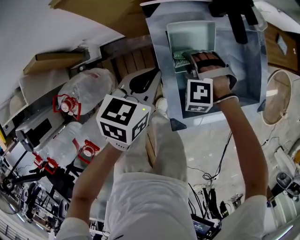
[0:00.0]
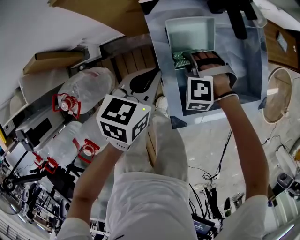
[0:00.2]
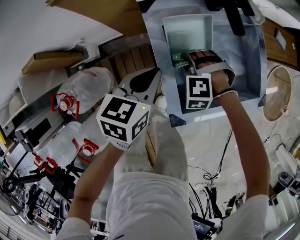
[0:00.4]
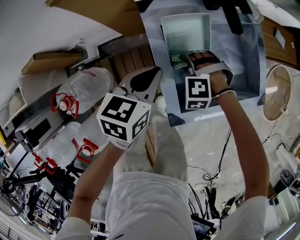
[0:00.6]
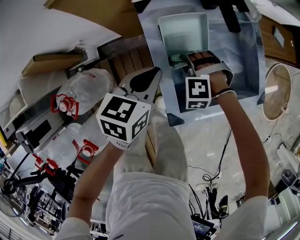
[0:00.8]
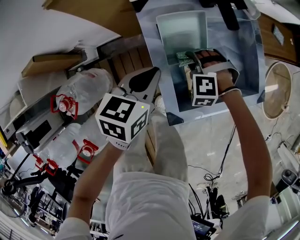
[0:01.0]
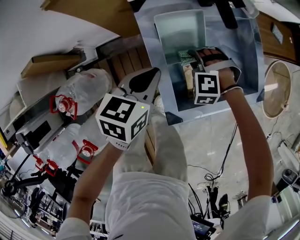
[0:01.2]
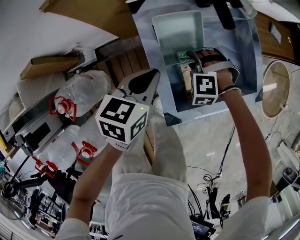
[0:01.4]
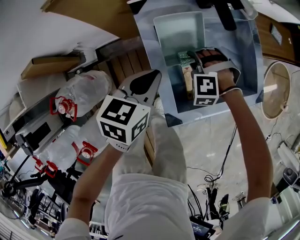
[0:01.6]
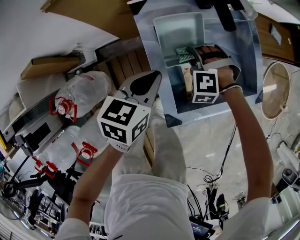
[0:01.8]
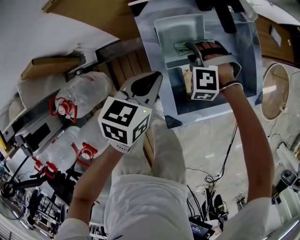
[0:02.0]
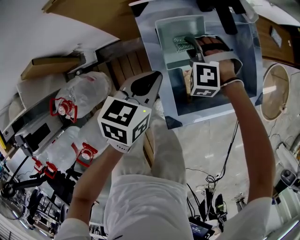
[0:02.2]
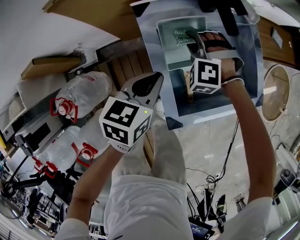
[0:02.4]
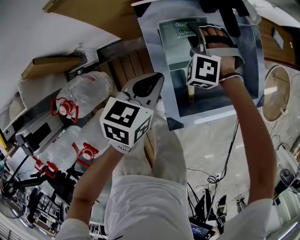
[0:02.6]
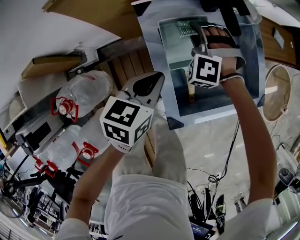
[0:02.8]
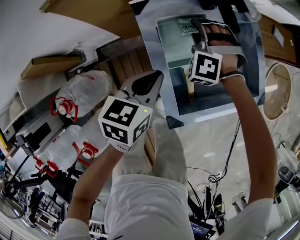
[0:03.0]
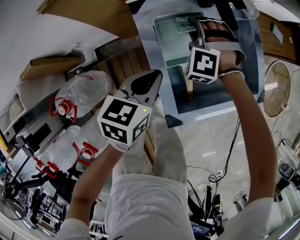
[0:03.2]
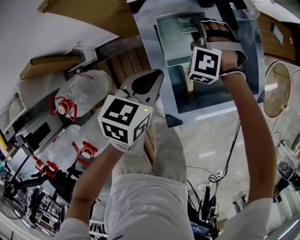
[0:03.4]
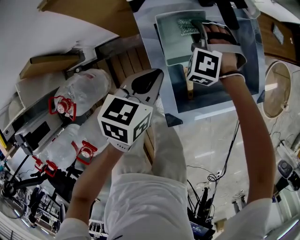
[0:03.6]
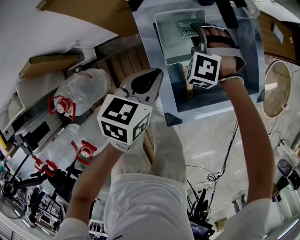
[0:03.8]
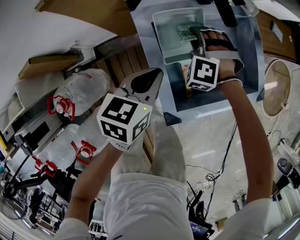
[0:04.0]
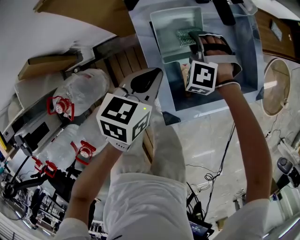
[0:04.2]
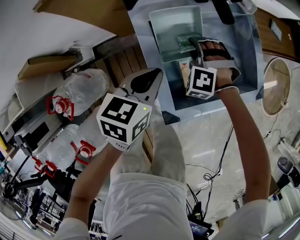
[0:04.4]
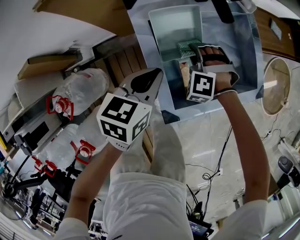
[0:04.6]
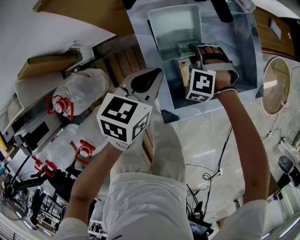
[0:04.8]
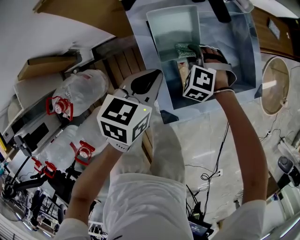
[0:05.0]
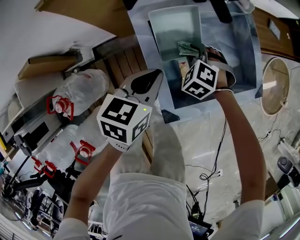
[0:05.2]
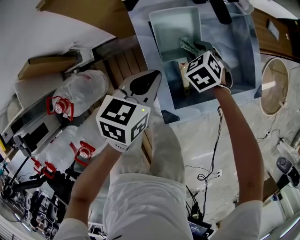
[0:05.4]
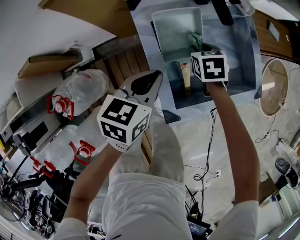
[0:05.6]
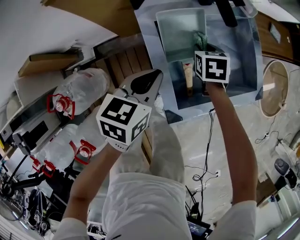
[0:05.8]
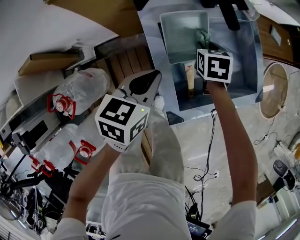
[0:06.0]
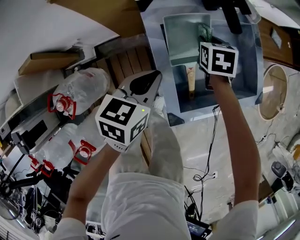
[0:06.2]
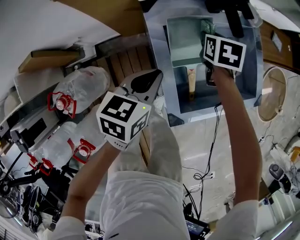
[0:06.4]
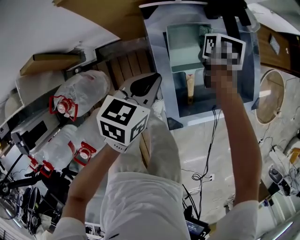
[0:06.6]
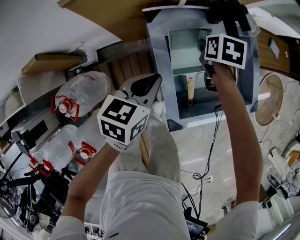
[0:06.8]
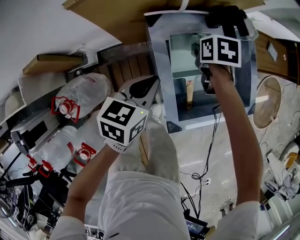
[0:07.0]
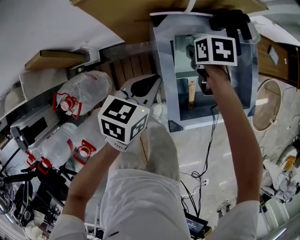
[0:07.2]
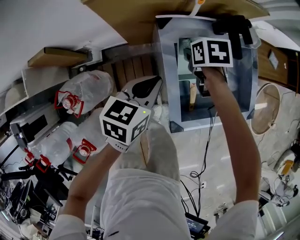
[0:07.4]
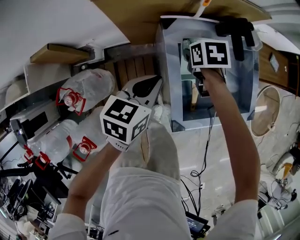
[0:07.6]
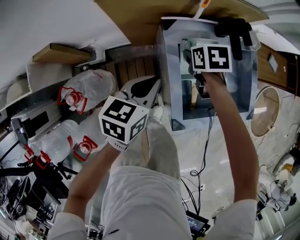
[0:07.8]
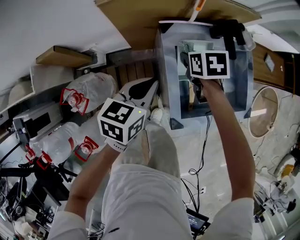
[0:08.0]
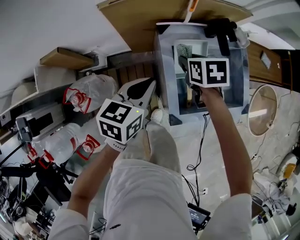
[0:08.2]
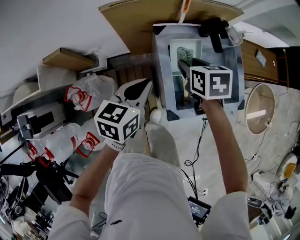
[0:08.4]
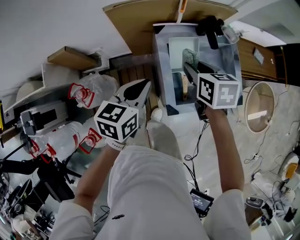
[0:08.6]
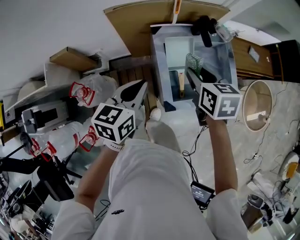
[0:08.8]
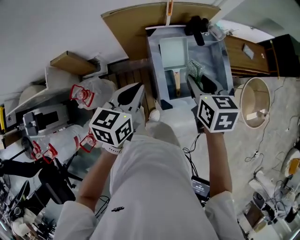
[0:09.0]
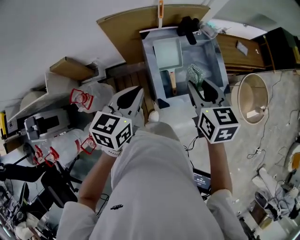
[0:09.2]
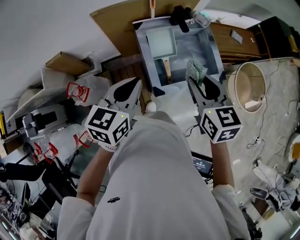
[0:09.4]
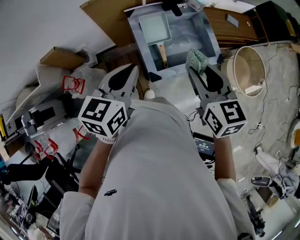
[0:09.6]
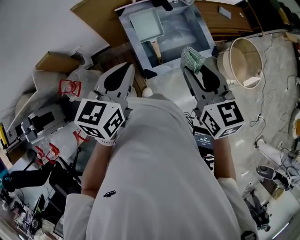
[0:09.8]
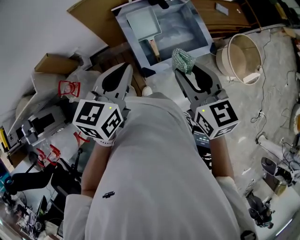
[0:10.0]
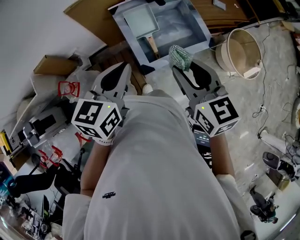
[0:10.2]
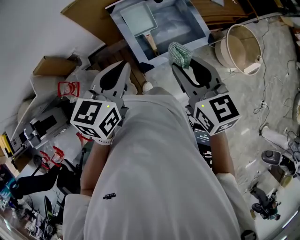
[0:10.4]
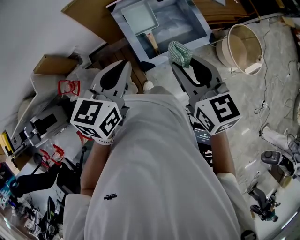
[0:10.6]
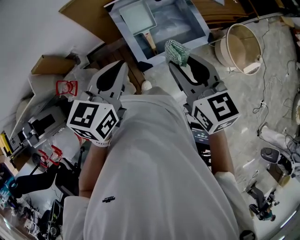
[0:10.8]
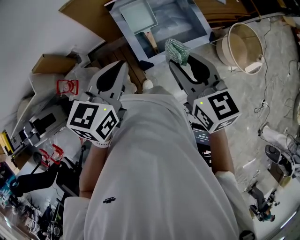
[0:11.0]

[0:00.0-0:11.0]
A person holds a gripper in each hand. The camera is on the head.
0:00.0 to 0:01.6: The right gripper travels to the right by approximately 5 cm.
0:01.6 to 0:03.2: The right gripper shifts roughly 15 cm forward, upward and to the left, and rotates about 20 degrees.
0:03.2 to 0:04.8: The right gripper moves backward, to the right and downward, approximately 15 cm.
0:04.8 to 0:06.2: The right gripper travels forward by roughly 10 cm, and rotates around the line of its fingers by some 80 degrees, clockwise from behind.
0:06.2 to 0:07.8: The left gripper changes place by some 10 cm, while the right gripper ends up roughly 15 cm from where it was, and turns by about 20 degrees.
0:07.8 to 0:09.4: The right gripper moves upward and backward, some 40 cm, and points its fingers approximately 40 degrees further upward, while the left gripper moves upward and backward, about 30 cm.
0:09.4 to 0:11.0: The left gripper ends up approximately 5 cm from where it was, while the right gripper travels backward by some 5 cm.

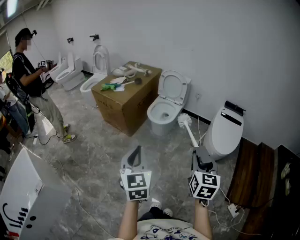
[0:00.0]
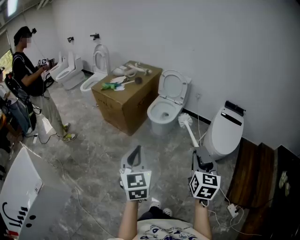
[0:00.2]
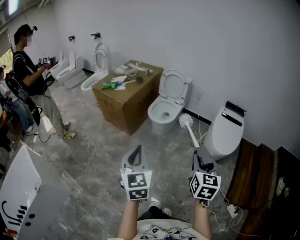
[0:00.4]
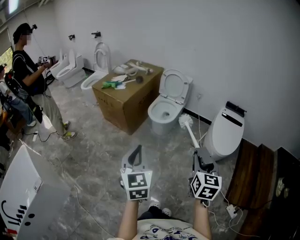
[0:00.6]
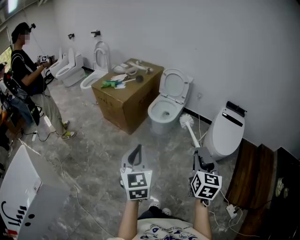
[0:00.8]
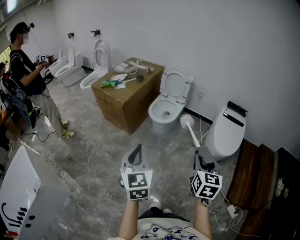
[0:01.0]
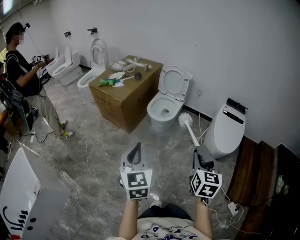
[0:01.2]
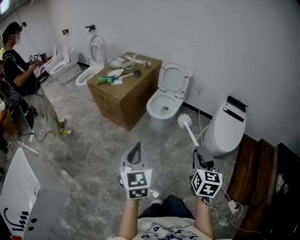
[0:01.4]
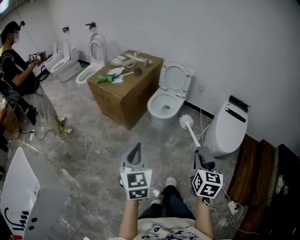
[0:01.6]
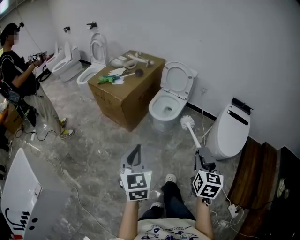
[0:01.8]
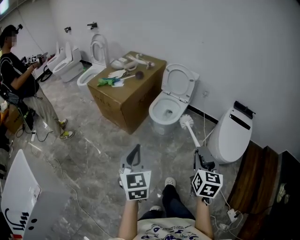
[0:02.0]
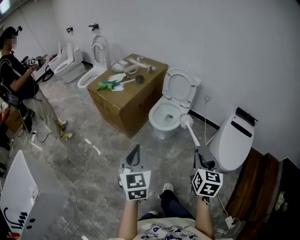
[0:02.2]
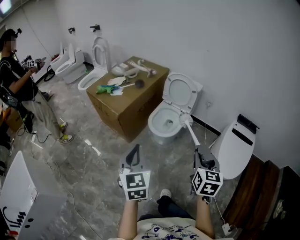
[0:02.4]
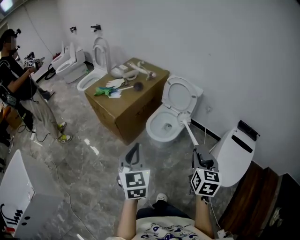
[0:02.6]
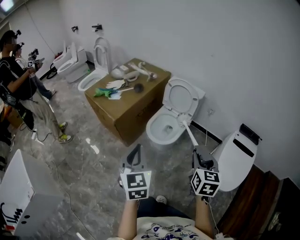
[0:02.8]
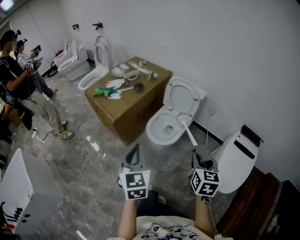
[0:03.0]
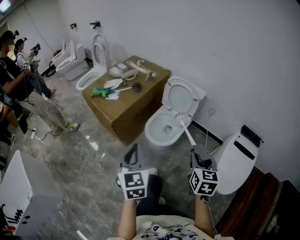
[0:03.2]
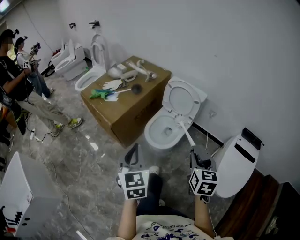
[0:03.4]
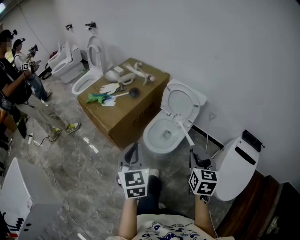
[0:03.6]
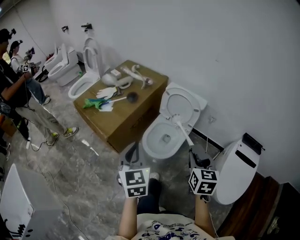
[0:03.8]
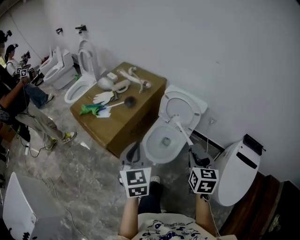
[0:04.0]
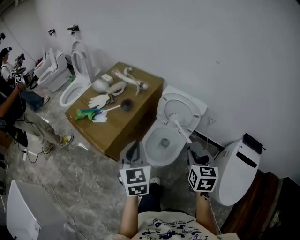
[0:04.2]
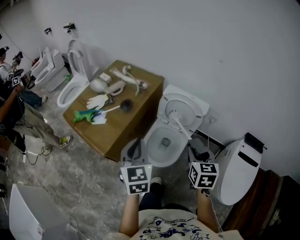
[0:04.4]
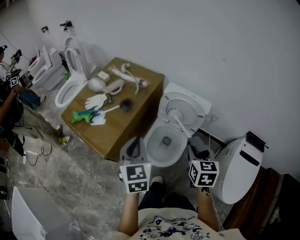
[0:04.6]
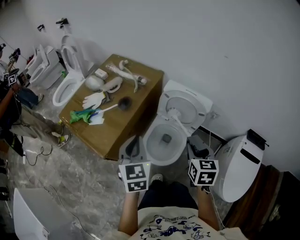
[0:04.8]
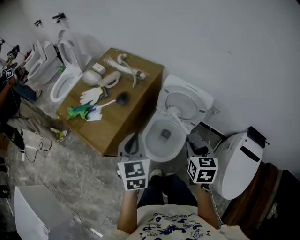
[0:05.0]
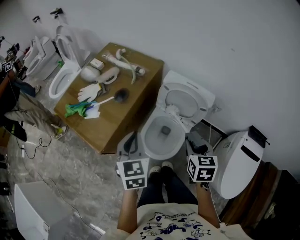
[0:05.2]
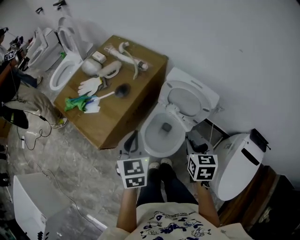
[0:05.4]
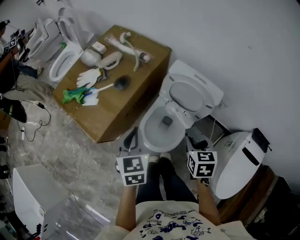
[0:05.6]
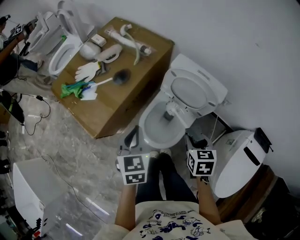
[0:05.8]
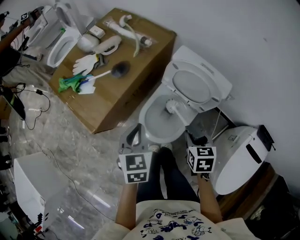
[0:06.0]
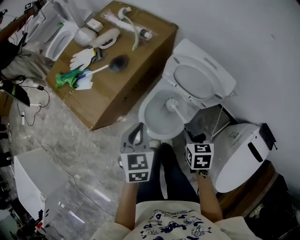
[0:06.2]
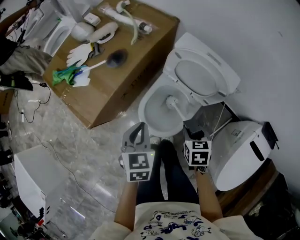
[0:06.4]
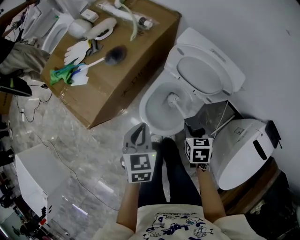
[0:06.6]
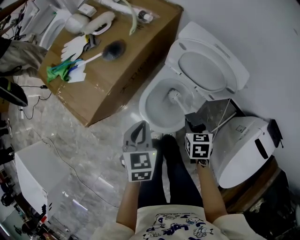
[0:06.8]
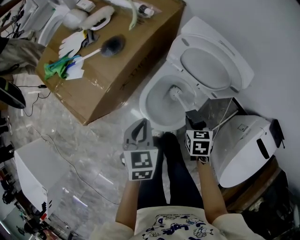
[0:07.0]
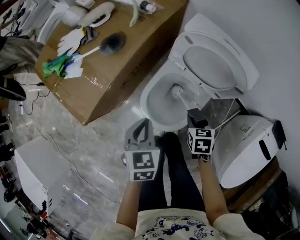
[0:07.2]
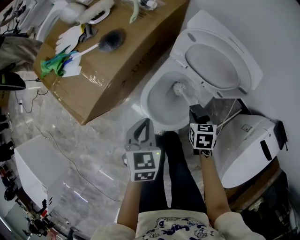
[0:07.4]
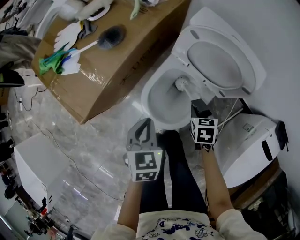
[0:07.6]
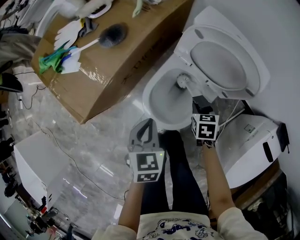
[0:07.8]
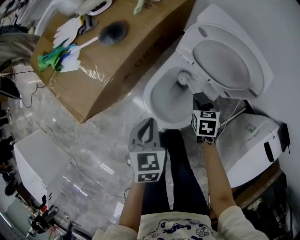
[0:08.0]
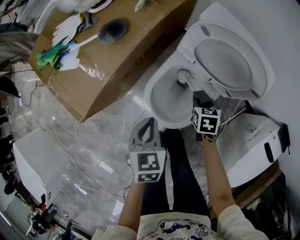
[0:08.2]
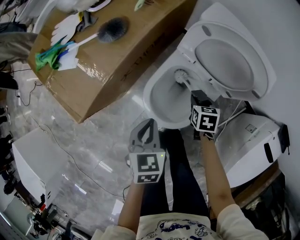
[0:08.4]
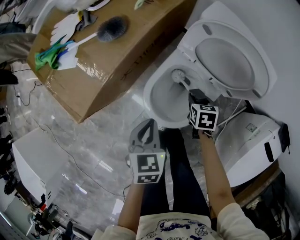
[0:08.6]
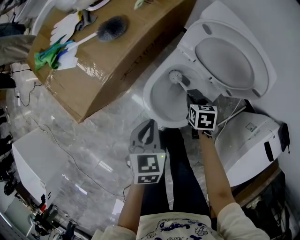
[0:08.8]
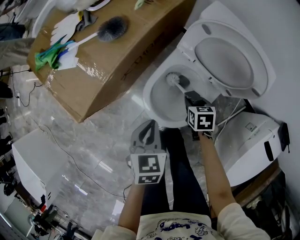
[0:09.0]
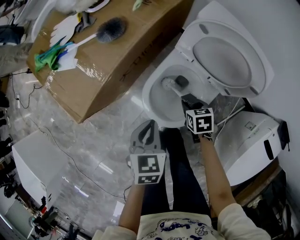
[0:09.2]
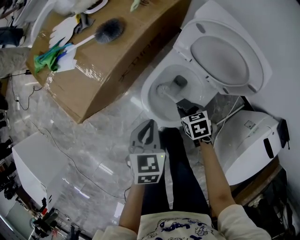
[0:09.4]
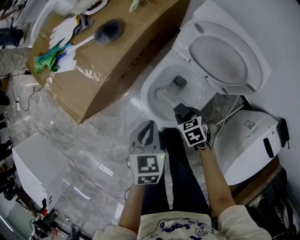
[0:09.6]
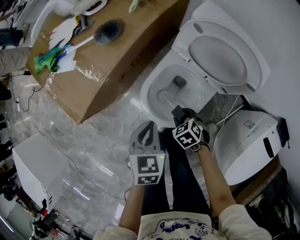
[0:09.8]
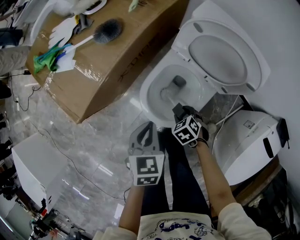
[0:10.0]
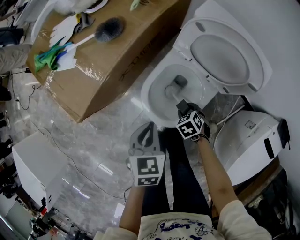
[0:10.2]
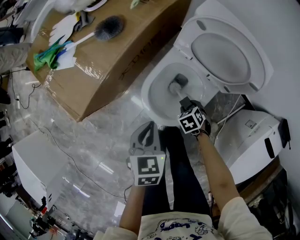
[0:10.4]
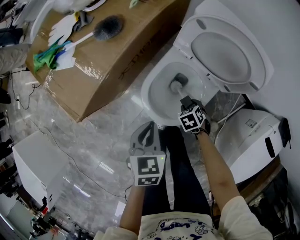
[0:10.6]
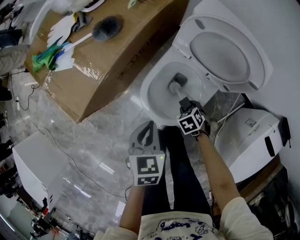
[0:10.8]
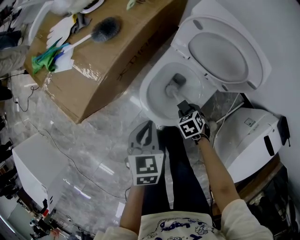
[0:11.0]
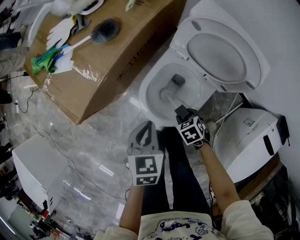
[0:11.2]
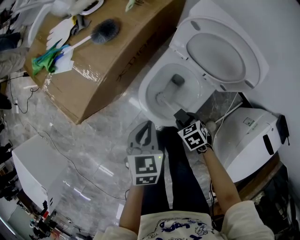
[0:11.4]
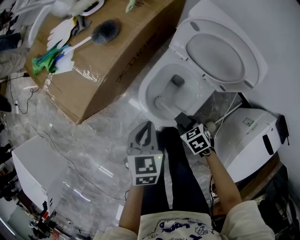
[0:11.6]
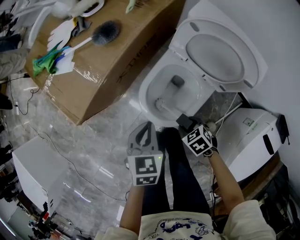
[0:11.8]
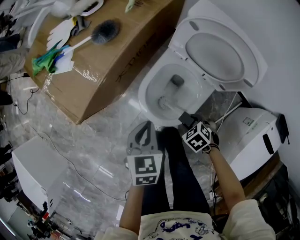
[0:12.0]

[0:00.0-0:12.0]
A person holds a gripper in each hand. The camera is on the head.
0:00.0 to 0:01.6: The grippers both shift forward by roughly 5 cm.
0:01.6 to 0:03.0: The grippers both shift forward by roughly 30 cm.
0:03.0 to 0:04.4: The grippers both shift forward by some 30 cm.
0:04.4 to 0:06.0: The grippers both shift downward and forward by roughly 20 cm. The right gripper turns by roughly 30 degrees.
0:06.0 to 0:07.6: Both grippers move downward, some 20 cm.
0:07.6 to 0:09.0: The right gripper travels downward by some 5 cm.
0:09.0 to 0:10.4: The right gripper is displaced downward by roughly 5 cm, and swivels roughly 30 degrees.
0:10.4 to 0:12.0: The right gripper shifts by roughly 10 cm.

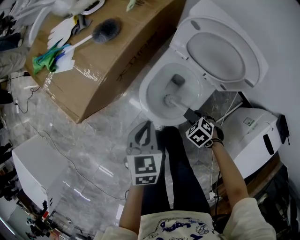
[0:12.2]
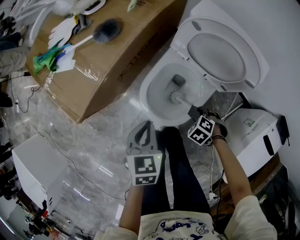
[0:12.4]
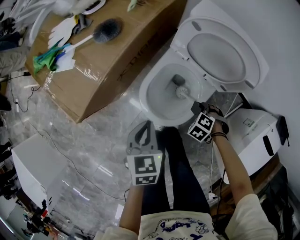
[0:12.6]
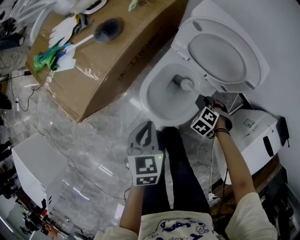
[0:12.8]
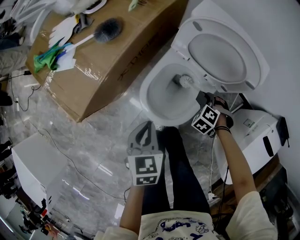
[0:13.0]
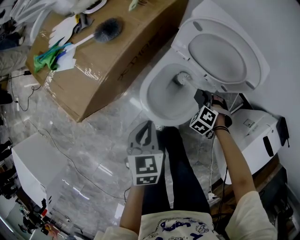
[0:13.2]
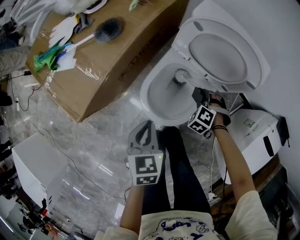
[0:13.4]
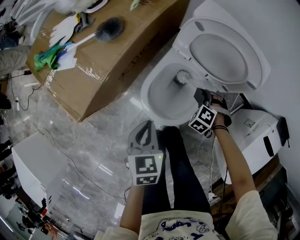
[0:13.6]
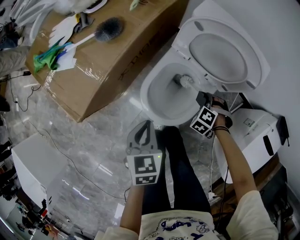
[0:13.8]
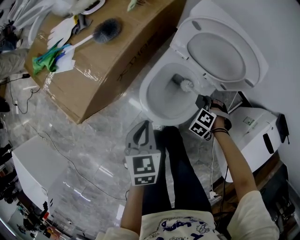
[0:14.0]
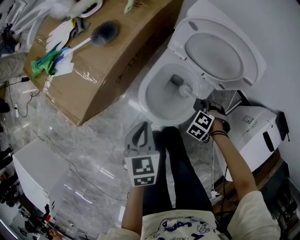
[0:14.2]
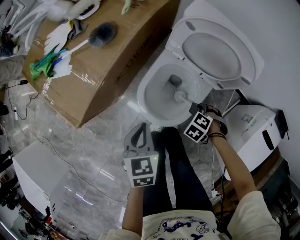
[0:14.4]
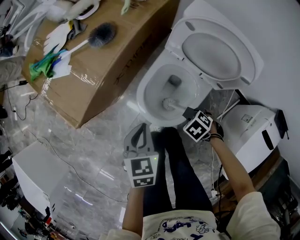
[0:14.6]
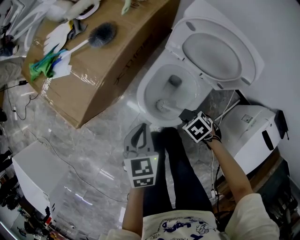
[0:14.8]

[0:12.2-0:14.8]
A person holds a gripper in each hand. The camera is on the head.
0:12.2 to 0:13.4: The right gripper shifts by approximately 10 cm, and rotates roughly 30 degrees.
0:13.4 to 0:14.8: The right gripper shifts by some 10 cm, and turns by about 40 degrees.
